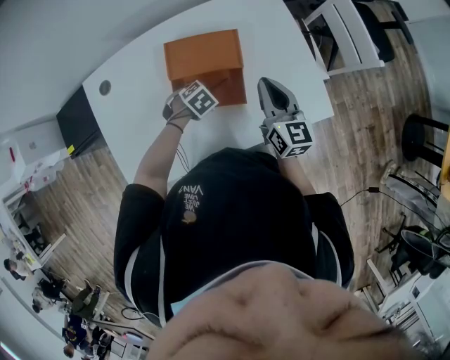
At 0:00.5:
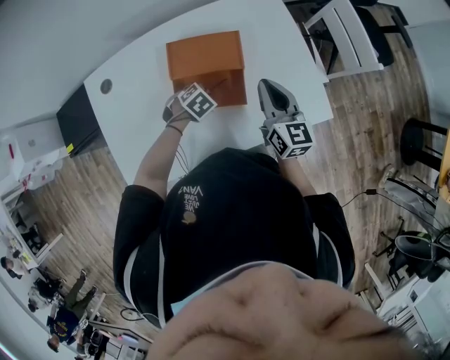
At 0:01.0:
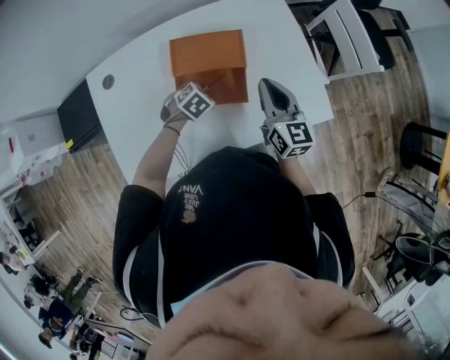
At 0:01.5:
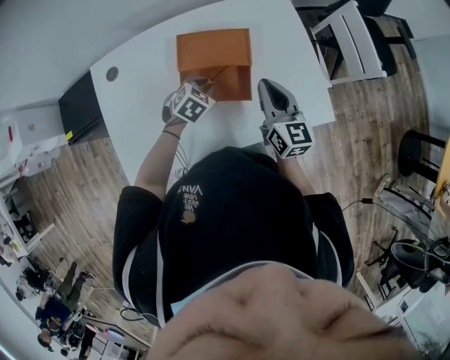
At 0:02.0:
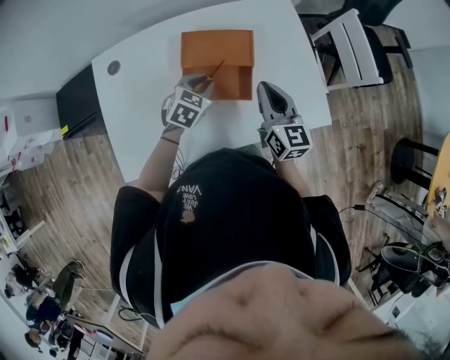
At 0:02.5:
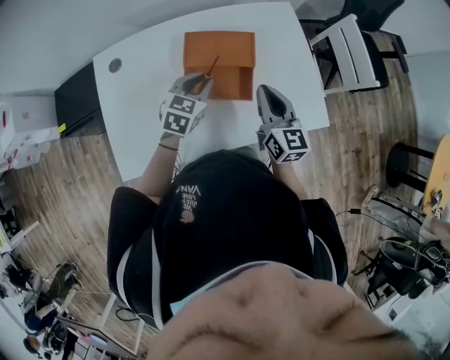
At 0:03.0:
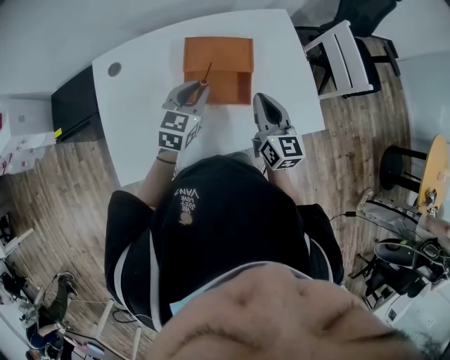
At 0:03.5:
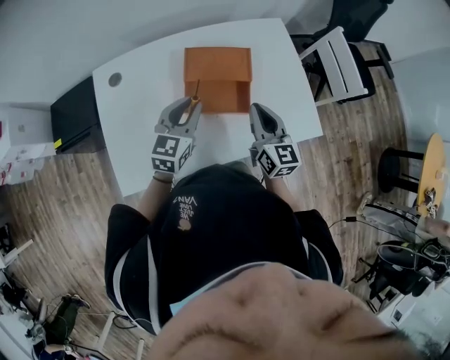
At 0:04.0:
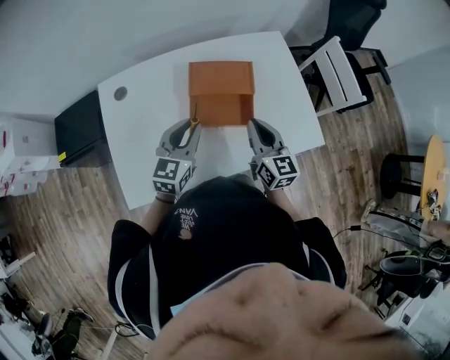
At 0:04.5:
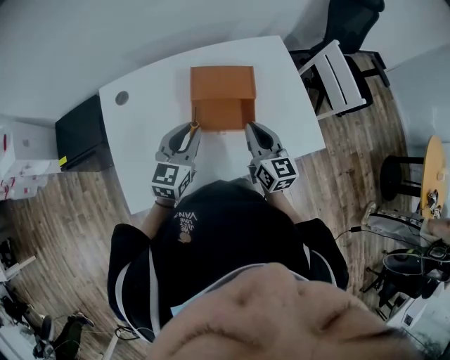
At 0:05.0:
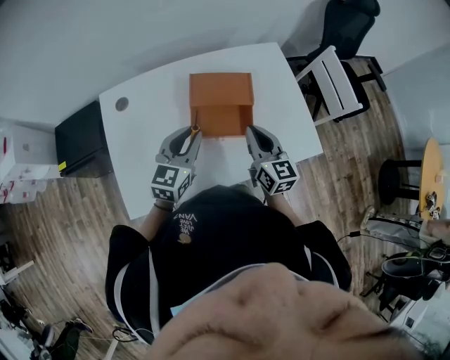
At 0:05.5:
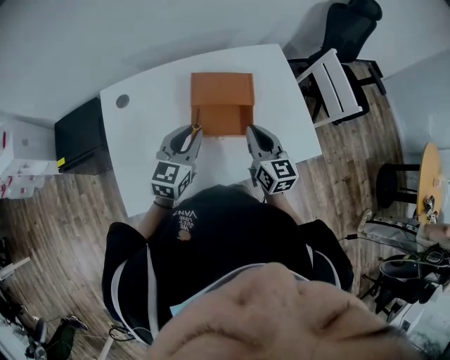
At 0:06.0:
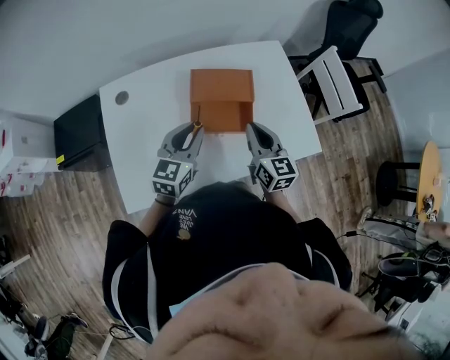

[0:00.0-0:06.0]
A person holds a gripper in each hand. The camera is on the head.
0:00.0 to 0:02.0: The left gripper travels upward by approximately 10 cm, and tips its fingers upward by roughly 30 degrees.
0:02.0 to 0:04.0: The right gripper shifts by some 5 cm; the left gripper heads upward, backward and to the left, covering about 15 cm, and changes its angle by roughly 30 degrees.
0:04.0 to 0:06.0: The grippers make only small movements.

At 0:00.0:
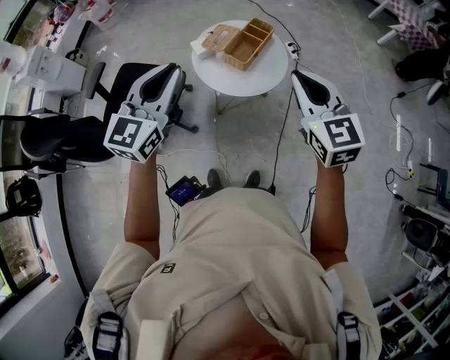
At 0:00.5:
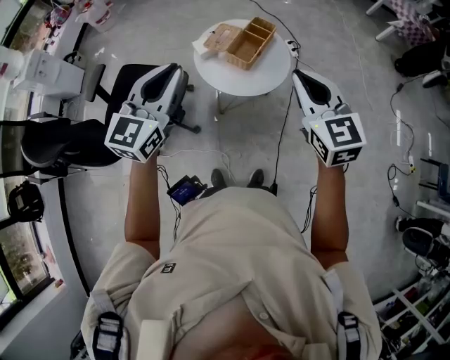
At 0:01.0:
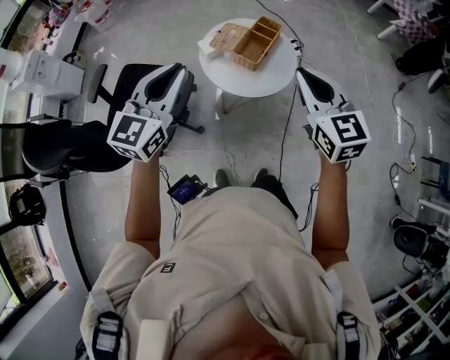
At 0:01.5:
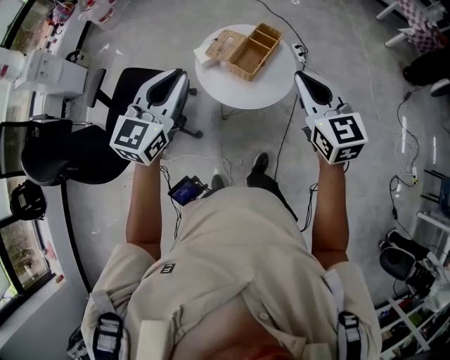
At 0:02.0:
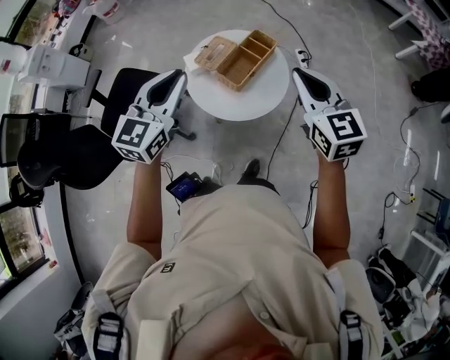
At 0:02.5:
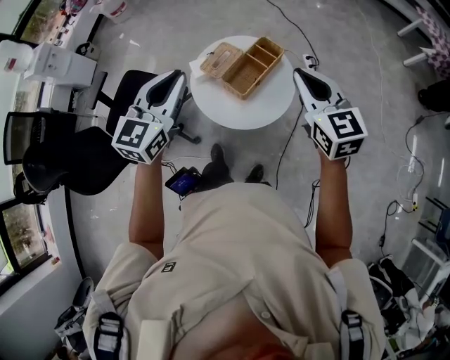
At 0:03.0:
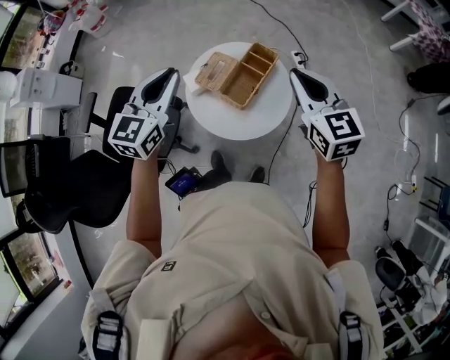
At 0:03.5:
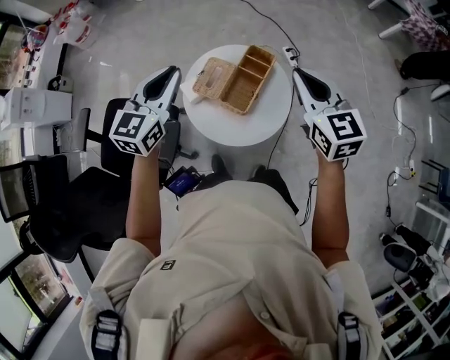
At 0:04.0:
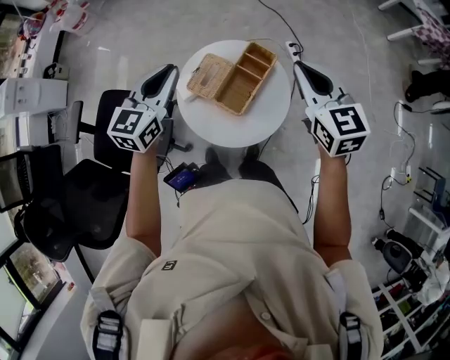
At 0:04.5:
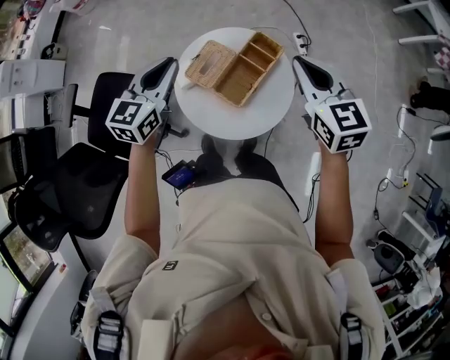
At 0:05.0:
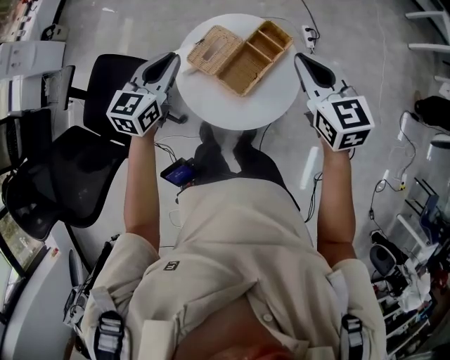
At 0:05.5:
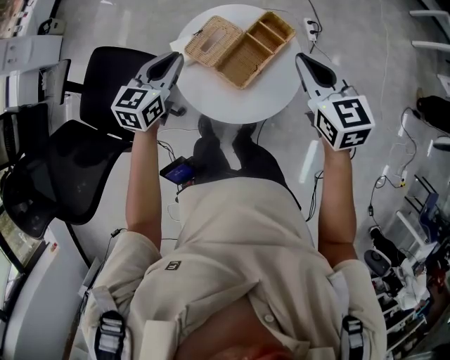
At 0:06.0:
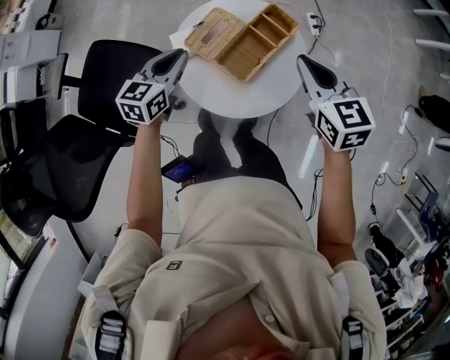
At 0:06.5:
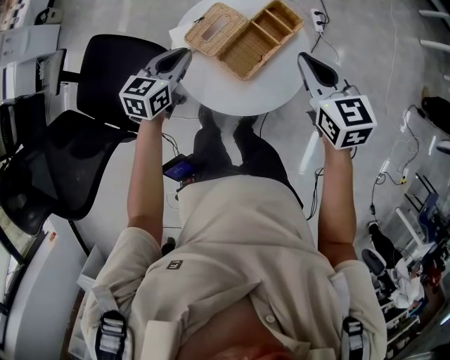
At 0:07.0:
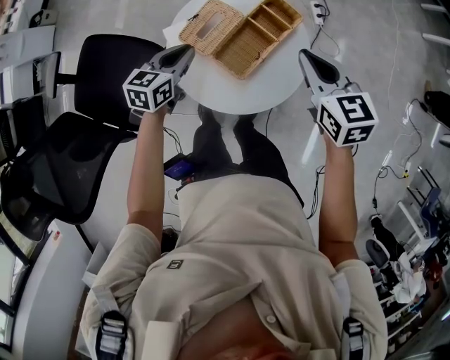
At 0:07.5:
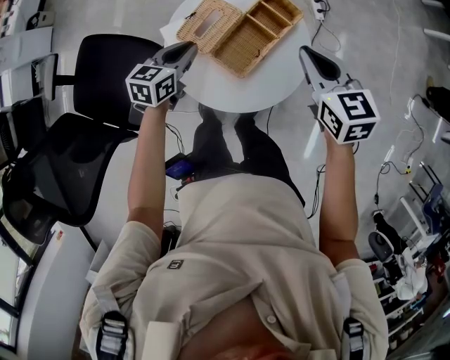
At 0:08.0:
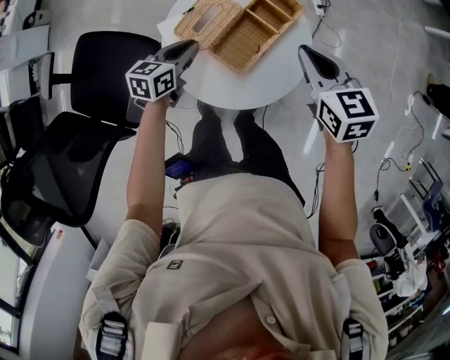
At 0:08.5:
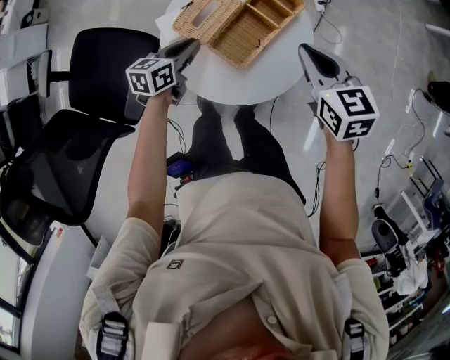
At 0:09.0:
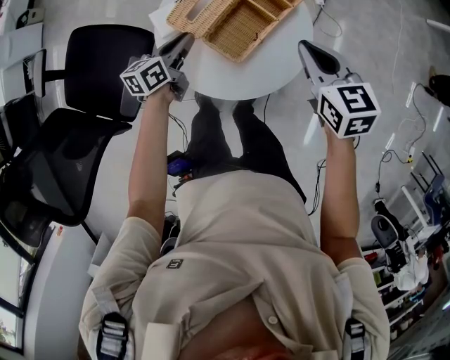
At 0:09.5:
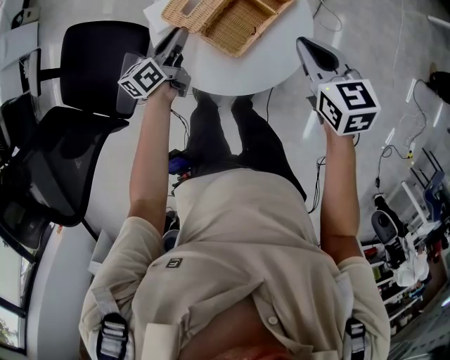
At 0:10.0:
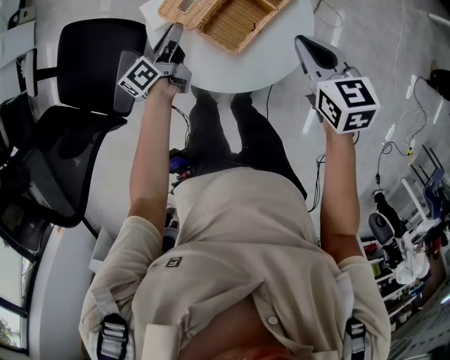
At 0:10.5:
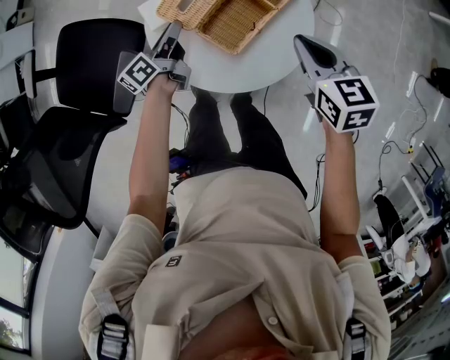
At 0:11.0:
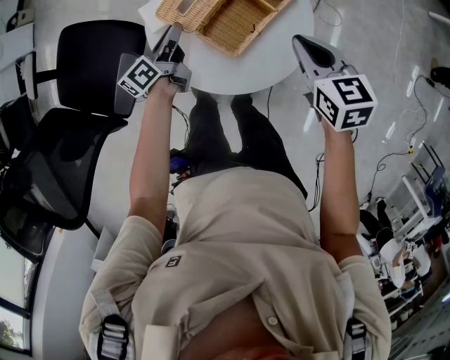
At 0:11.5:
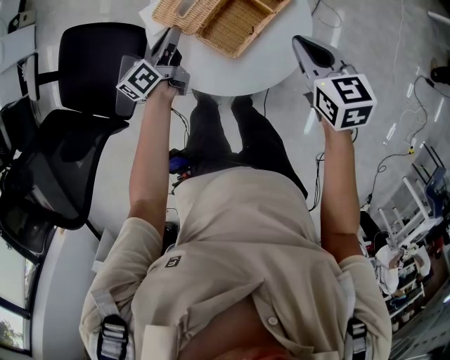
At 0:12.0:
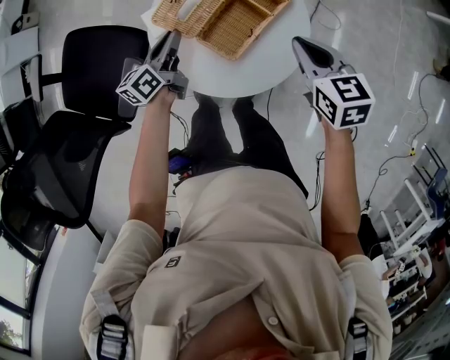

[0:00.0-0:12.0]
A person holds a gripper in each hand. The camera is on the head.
0:00.0 to 0:02.0: The left gripper is displaced forward and to the right by approximately 20 cm. The right gripper goes roughly 20 cm forward.
0:02.0 to 0:04.0: Both grippers move forward, about 20 cm.
0:04.0 to 0:06.0: The grippers both shift downward by approximately 15 cm.
0:06.0 to 0:08.0: The left gripper heads downward, covering approximately 10 cm; the right gripper heads downward, covering roughly 5 cm.
0:08.0 to 0:10.0: Both grippers travel together downward, about 5 cm. The left gripper swivels approximately 50 degrees.
0:10.0 to 0:12.0: The grippers move only a little.

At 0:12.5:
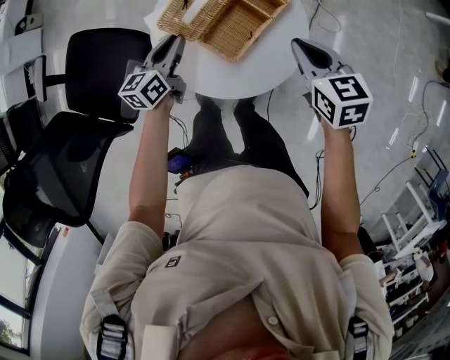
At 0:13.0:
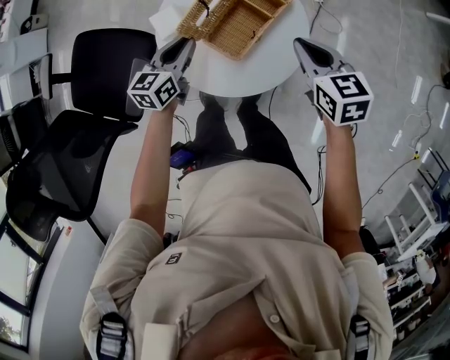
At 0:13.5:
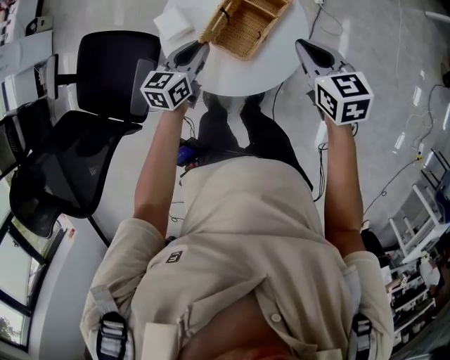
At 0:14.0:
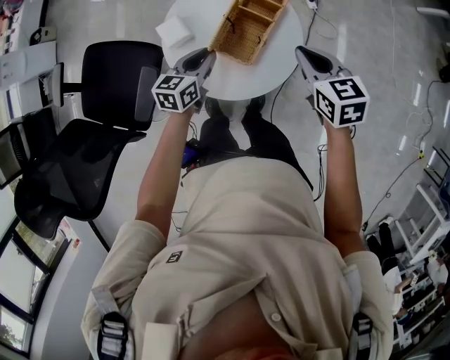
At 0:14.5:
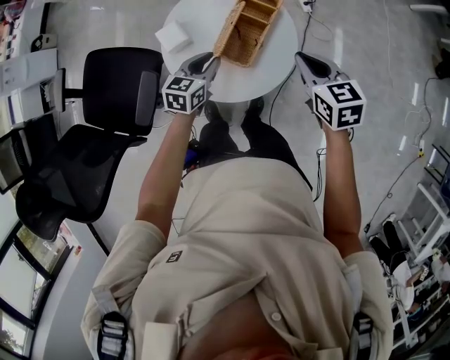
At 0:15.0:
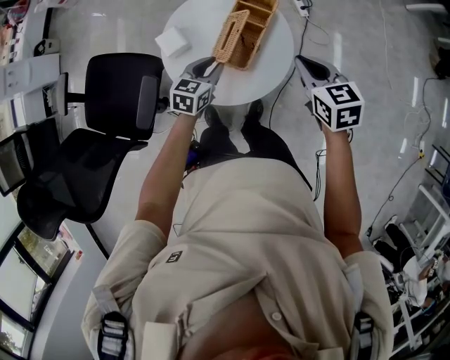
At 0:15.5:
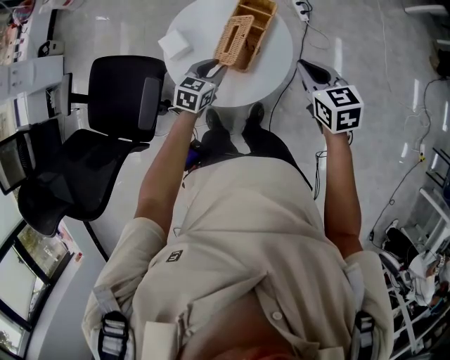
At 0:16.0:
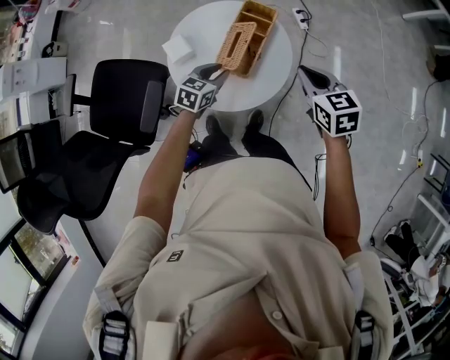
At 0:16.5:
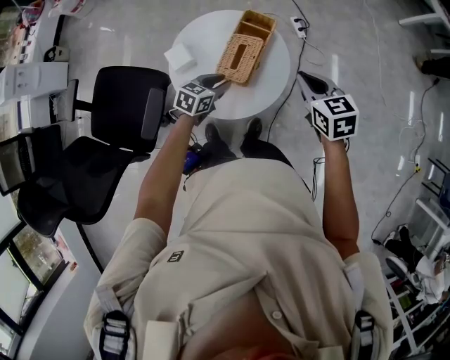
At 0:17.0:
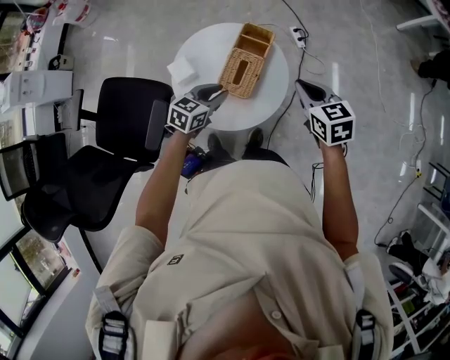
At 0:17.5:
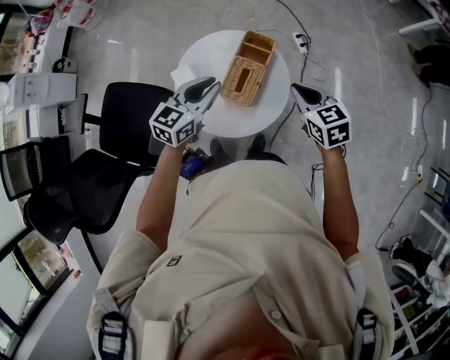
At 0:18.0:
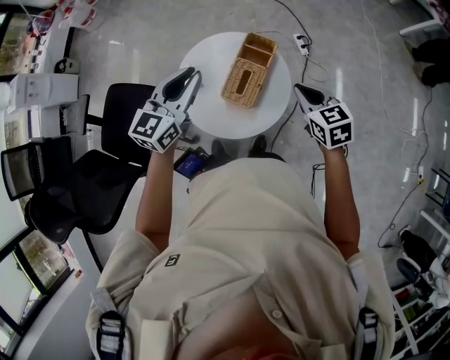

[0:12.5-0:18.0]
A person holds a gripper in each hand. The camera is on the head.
0:12.5 to 0:14.5: The right gripper moves backward, about 5 cm; the left gripper shifts some 10 cm to the right and backward, and swivels approximately 30 degrees.
0:14.5 to 0:16.0: The grippers make only small movements.
0:16.0 to 0:18.0: The left gripper travels upward by some 25 cm, and tips its fingers upward by approximately 30 degrees.

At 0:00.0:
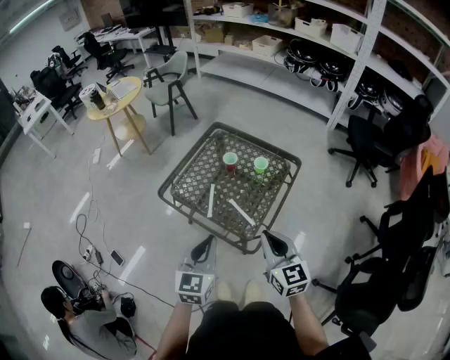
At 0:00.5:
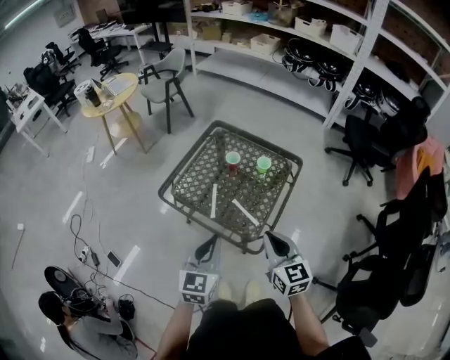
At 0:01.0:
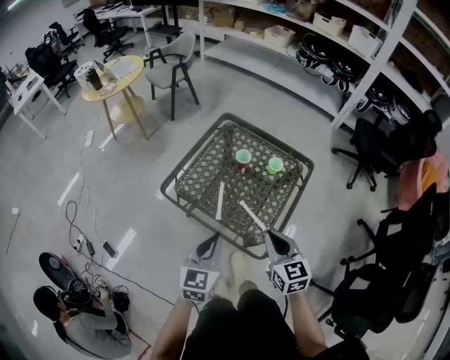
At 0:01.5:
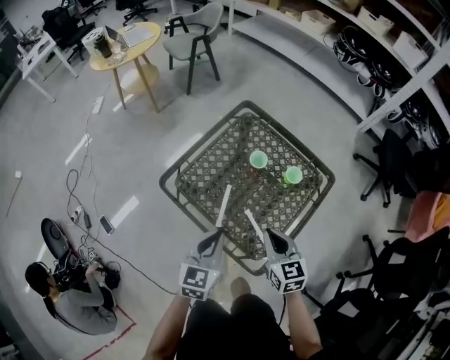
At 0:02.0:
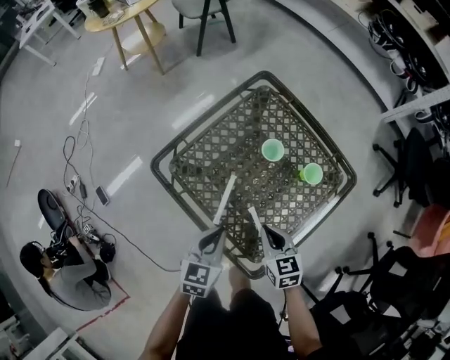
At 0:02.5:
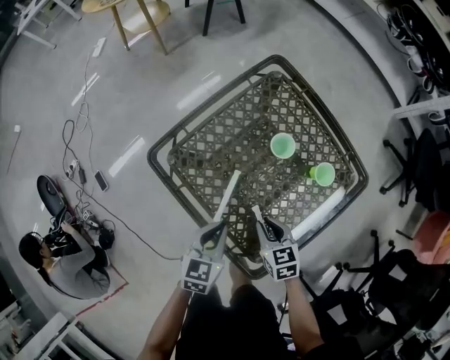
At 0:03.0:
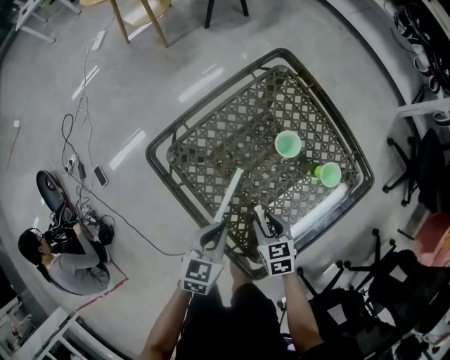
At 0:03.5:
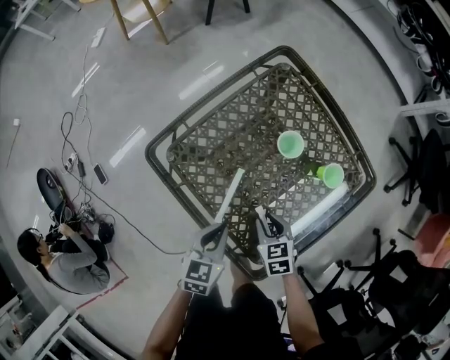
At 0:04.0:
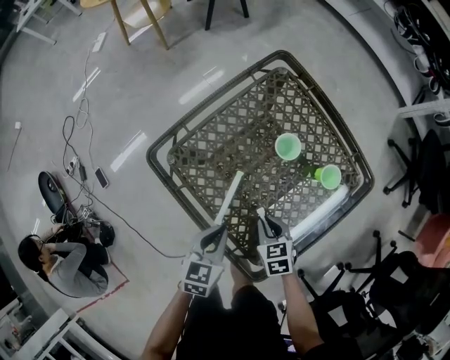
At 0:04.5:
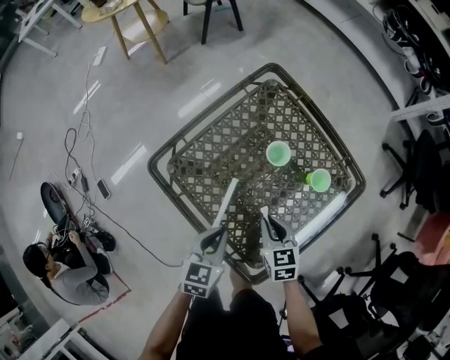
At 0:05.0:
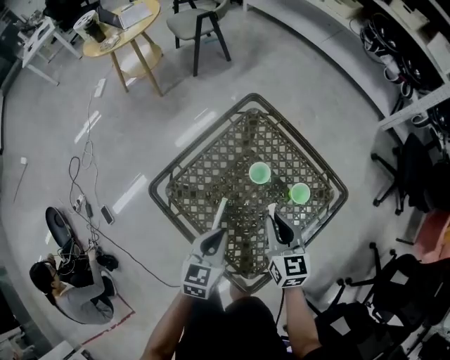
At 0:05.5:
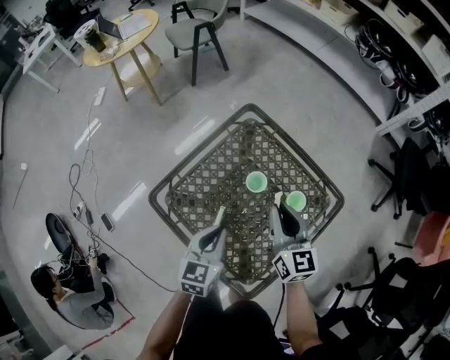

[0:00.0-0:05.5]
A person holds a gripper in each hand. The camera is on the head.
0:00.0 to 0:02.0: The grippers both shift downward and forward by some 35 cm. The left gripper rotates about 20 degrees, while the right gripper changes its angle by roughly 30 degrees.
0:02.0 to 0:03.5: The left gripper is displaced downward by about 10 cm, while the right gripper shifts some 10 cm downward, and opens up.
0:03.5 to 0:05.5: The left gripper shifts roughly 15 cm upward and forward. Meanwhile the right gripper moves upward and forward, some 30 cm, and tips its fingers upward by some 40 degrees.
